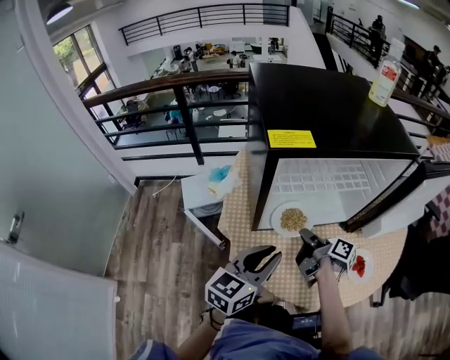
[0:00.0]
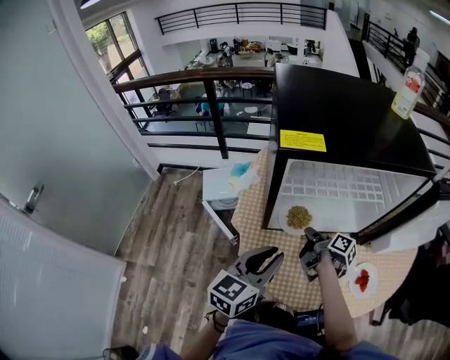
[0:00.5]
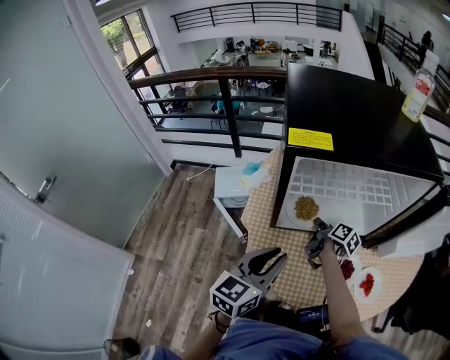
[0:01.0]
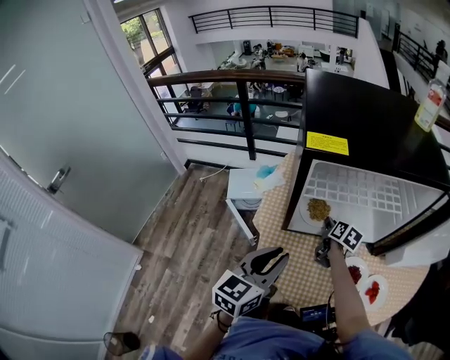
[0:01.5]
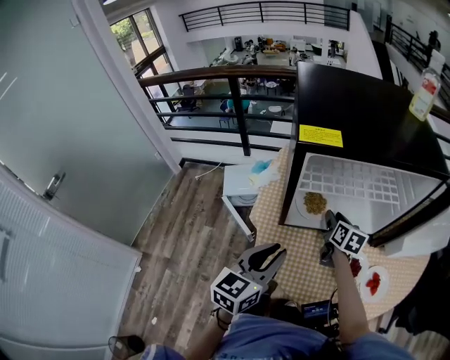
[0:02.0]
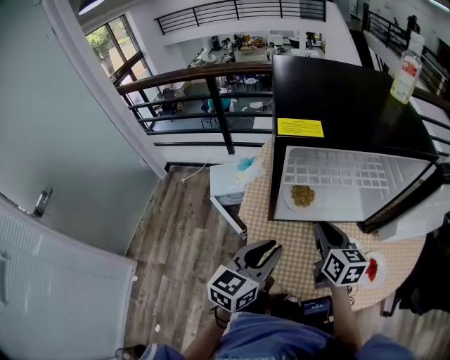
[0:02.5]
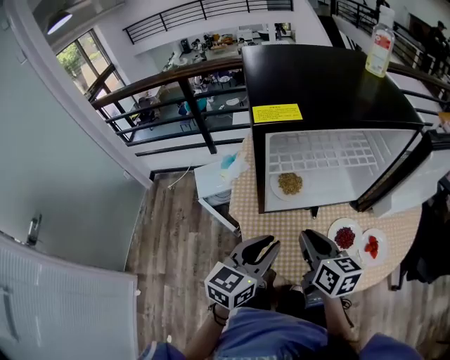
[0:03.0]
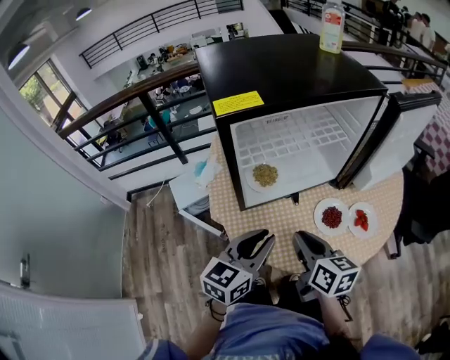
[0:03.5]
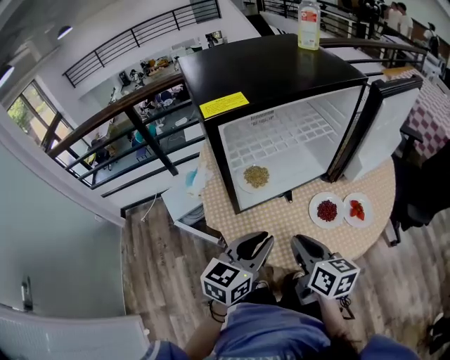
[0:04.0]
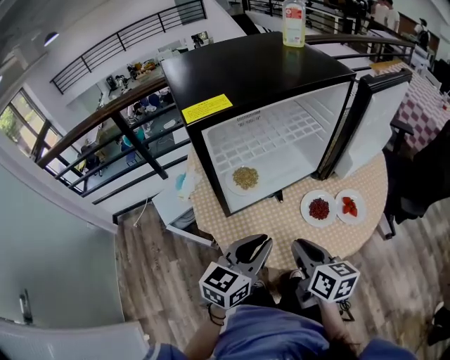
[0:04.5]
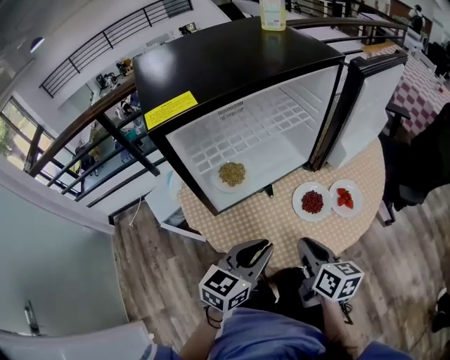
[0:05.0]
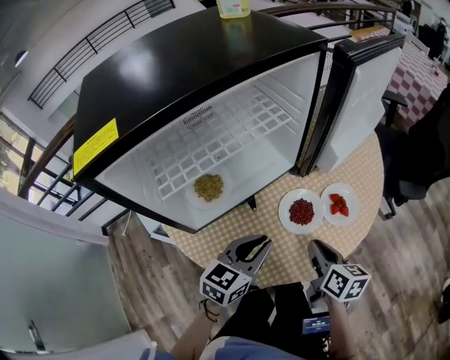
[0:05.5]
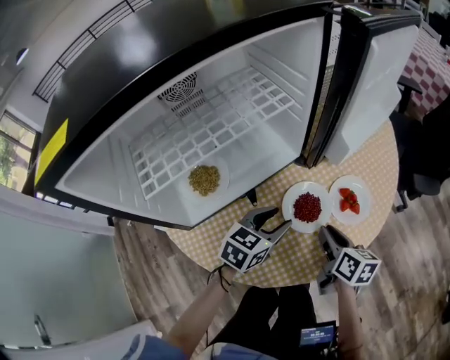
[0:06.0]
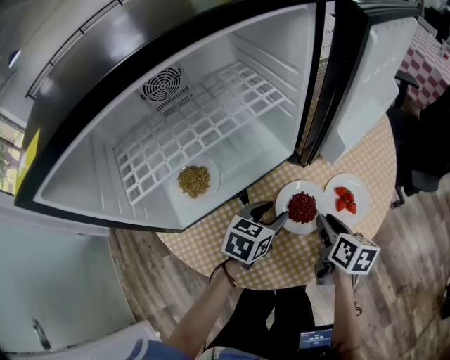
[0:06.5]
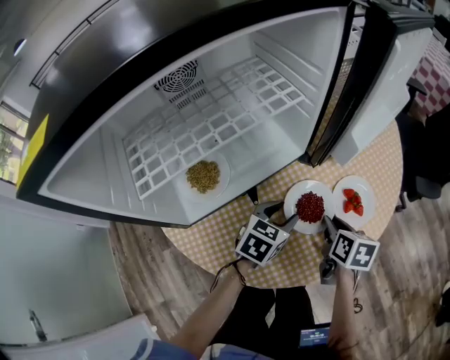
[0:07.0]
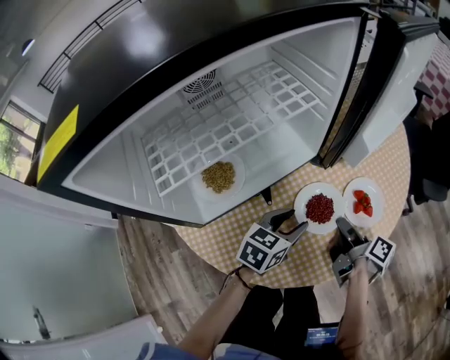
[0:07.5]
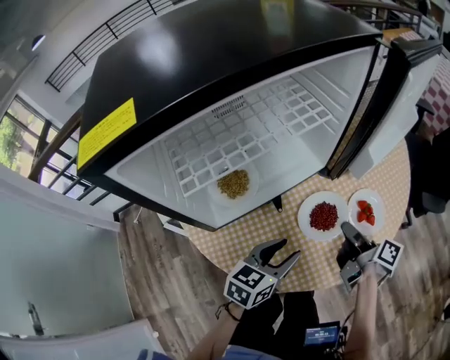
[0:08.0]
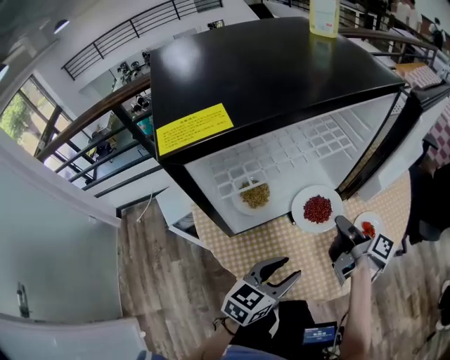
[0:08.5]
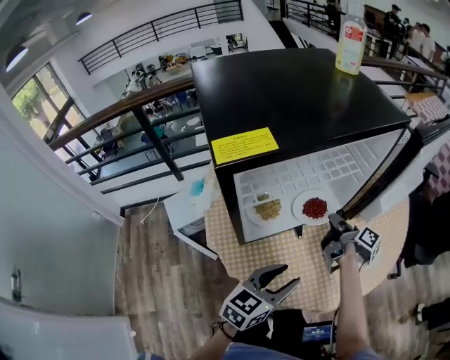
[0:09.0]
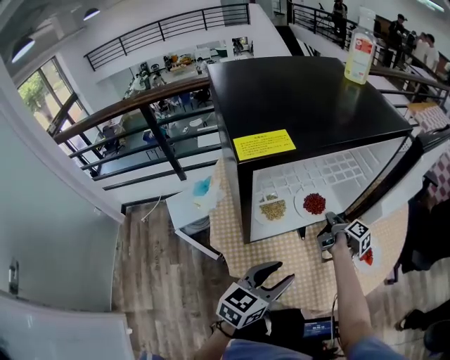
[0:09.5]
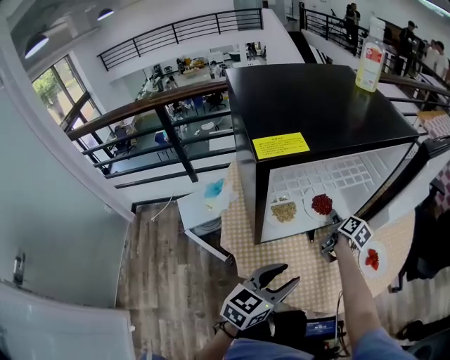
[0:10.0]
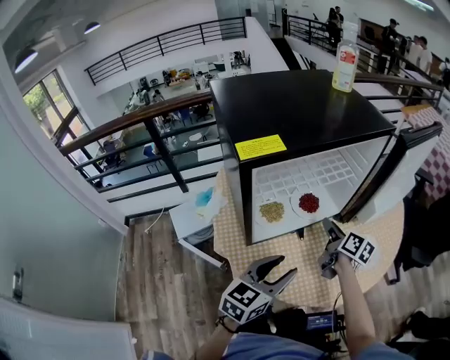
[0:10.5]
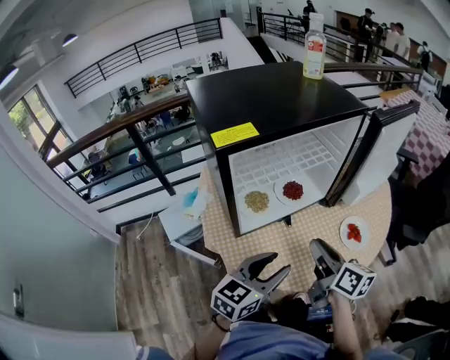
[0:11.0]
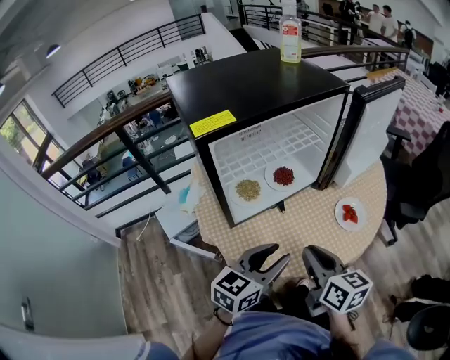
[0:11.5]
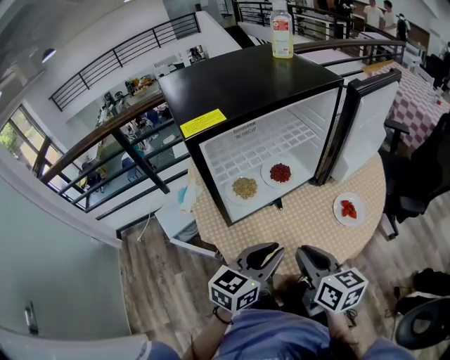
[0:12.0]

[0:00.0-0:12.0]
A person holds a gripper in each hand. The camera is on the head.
0.0 to 2.0 s: The right gripper is displaced forward by approximately 10 cm, rolls counterclockwise, seen from behind, by about 50 degrees, and opens up.
2.0 to 4.0 s: The left gripper ends up approximately 5 cm from where it was, and rotates about 30 degrees. Meanwhile the right gripper goes roughly 25 cm backward, and closes up.
4.0 to 6.0 s: The right gripper shifts some 30 cm to the right, downward and forward, and turns by roughly 30 degrees. Meanwhile the left gripper is displaced downward, forward and to the right by some 30 cm, swivels about 30 degrees, and opens.
6.0 to 8.0 s: The right gripper ends up approximately 5 cm from where it was, and changes its angle by roughly 40 degrees, while the left gripper travels backward by roughly 10 cm.
8.0 to 10.0 s: The right gripper shifts some 20 cm to the left and forward, rotates approximately 30 degrees, and opens. Meanwhile the left gripper travels upward, to the left and backward by some 15 cm.
10.0 to 12.0 s: The left gripper shifts by approximately 5 cm, and closes, while the right gripper travels backward and upward by about 35 cm, and changes its angle by about 30 degrees.

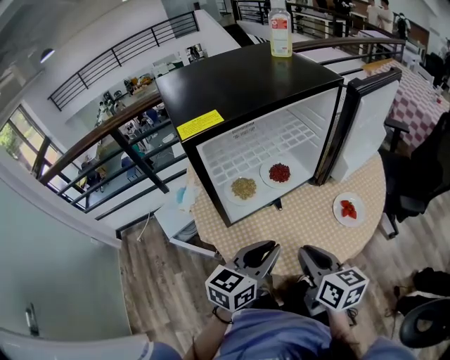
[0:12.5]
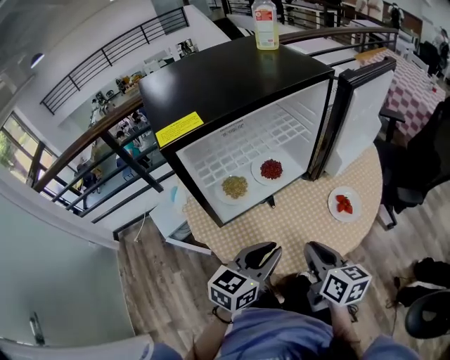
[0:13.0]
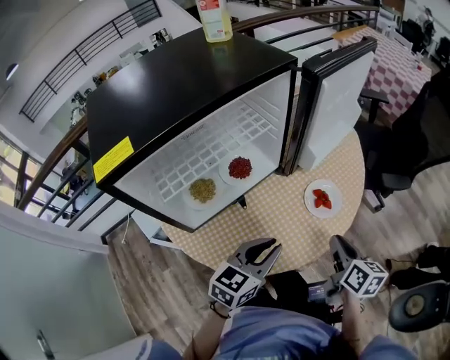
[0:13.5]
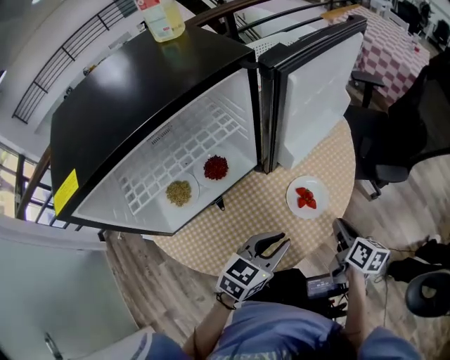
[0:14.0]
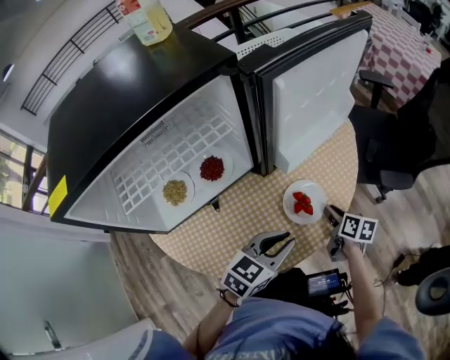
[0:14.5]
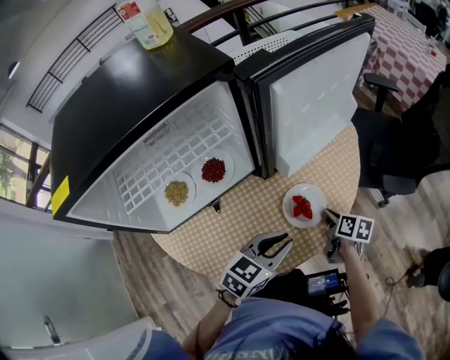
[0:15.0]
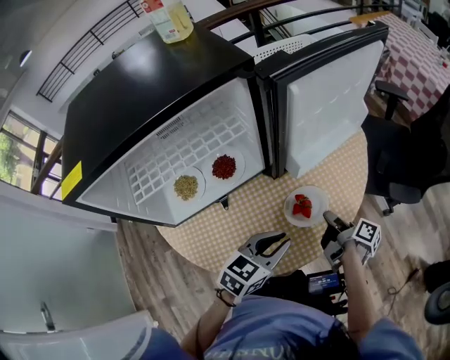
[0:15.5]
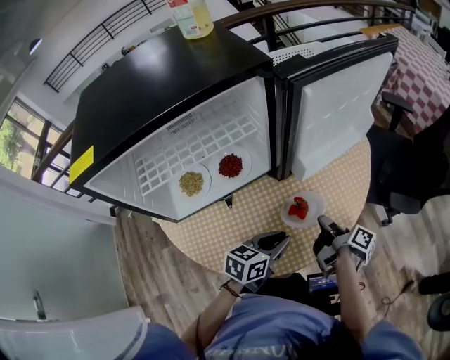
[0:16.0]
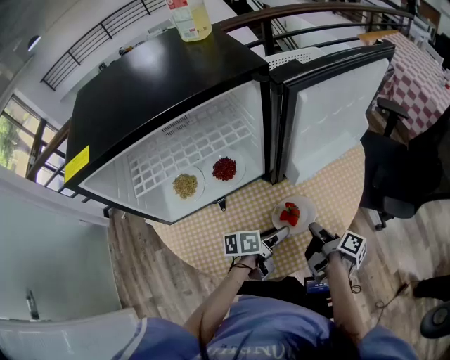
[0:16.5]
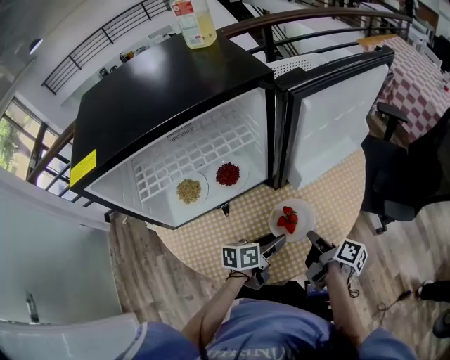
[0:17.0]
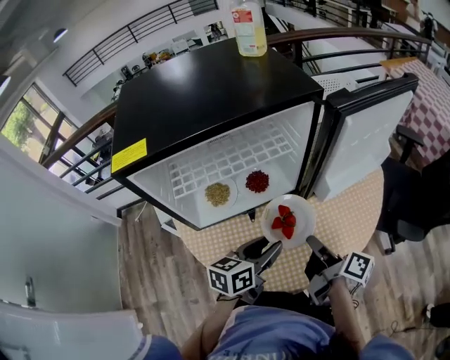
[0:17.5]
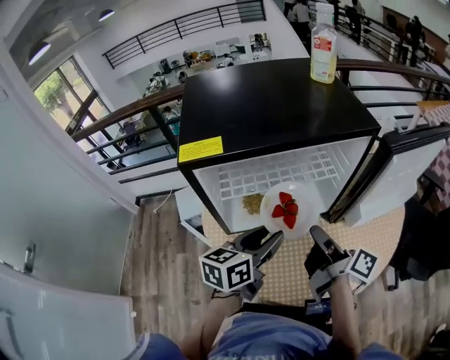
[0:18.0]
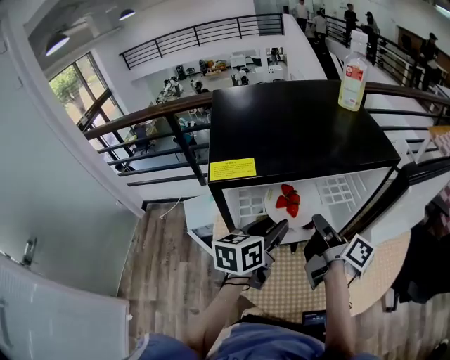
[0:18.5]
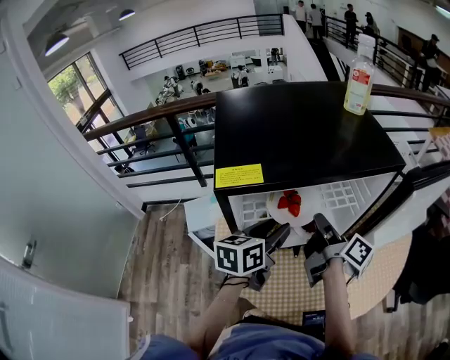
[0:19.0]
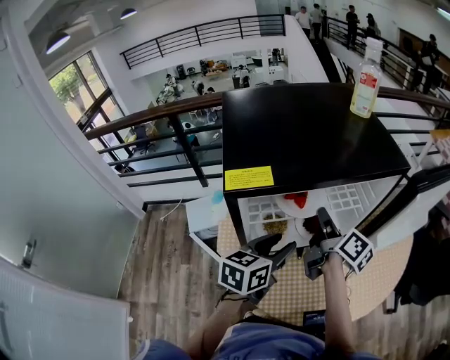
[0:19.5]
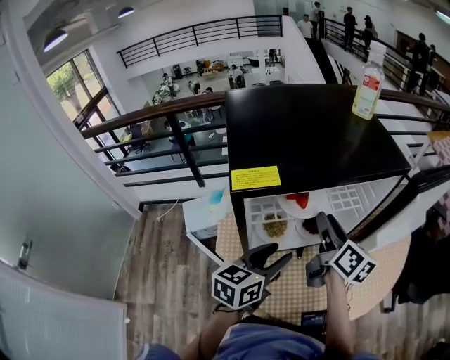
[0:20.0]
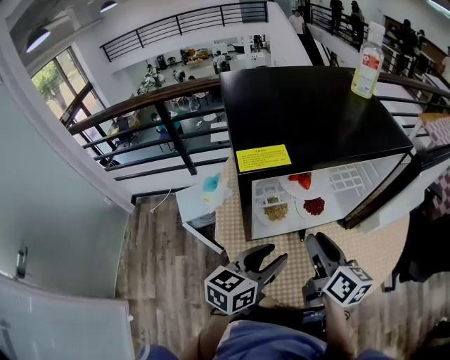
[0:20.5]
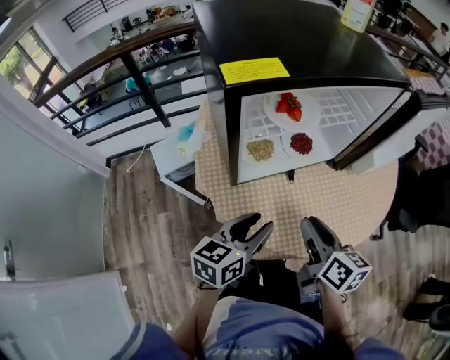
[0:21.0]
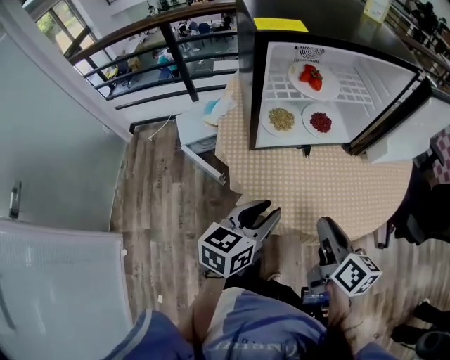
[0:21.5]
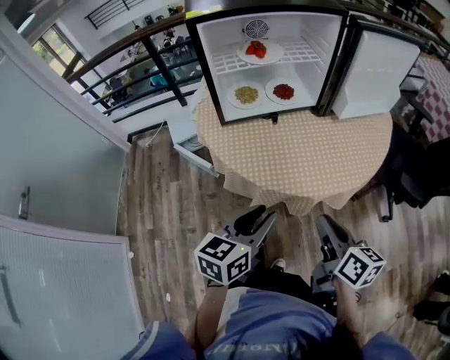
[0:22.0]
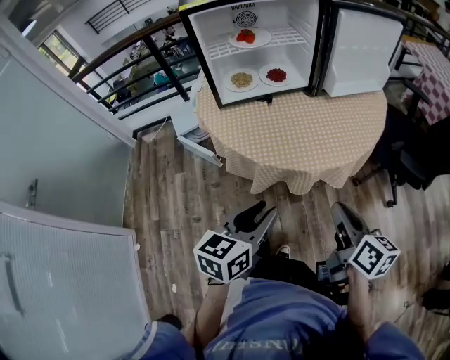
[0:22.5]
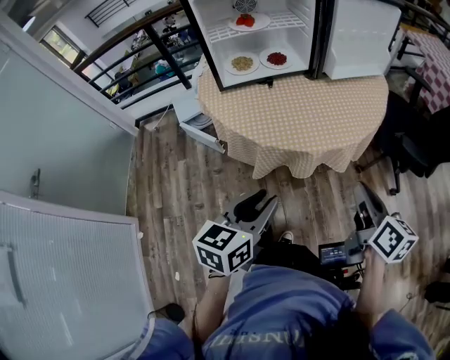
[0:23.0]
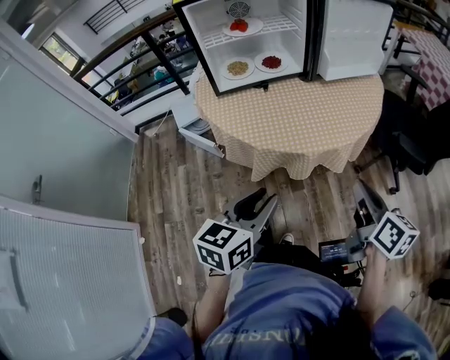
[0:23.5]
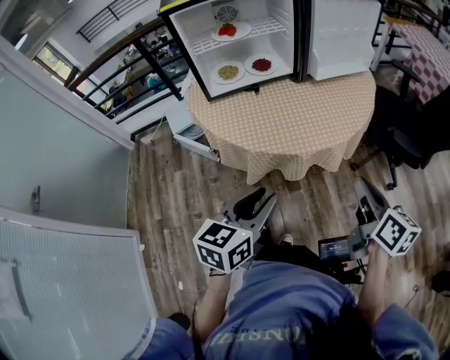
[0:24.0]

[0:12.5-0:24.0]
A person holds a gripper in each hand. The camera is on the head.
12.5 to 14.5 s: The left gripper shifts roughly 25 cm to the right and forward, and changes its angle by about 20 degrees, while the right gripper goes roughly 40 cm to the right, forward and downward, and swivels about 30 degrees.
14.5 to 16.5 s: The right gripper is displaced to the left by roughly 5 cm, and changes its angle by some 40 degrees; the left gripper is displaced downward by roughly 10 cm, rotates around the line of its fingers by roughly 60 degrees, counterclockwise from behind, and opens its fingers.
16.5 to 18.5 s: The grippers both shift to the left and upward by about 40 cm. The left gripper rotates some 40 degrees. The right gripper rotates roughly 30 degrees.
18.5 to 20.0 s: The right gripper rotates about 30 degrees, and opens up. Meanwhile the left gripper goes some 5 cm backward.
20.0 to 22.0 s: The grippers both shift backward by some 35 cm. The right gripper closes up.
22.0 to 24.0 s: The right gripper heads to the right, covering roughly 15 cm. Meanwhile the left gripper travels backward and to the right by some 10 cm.

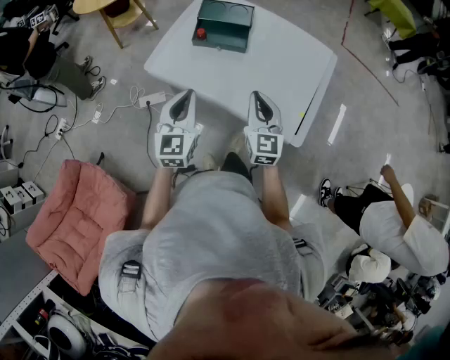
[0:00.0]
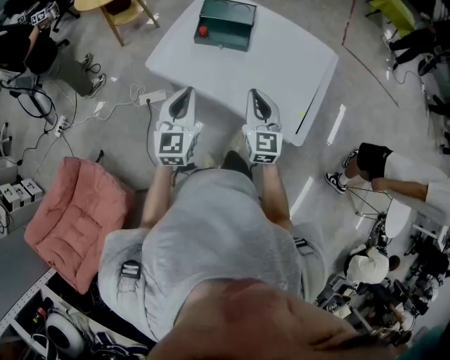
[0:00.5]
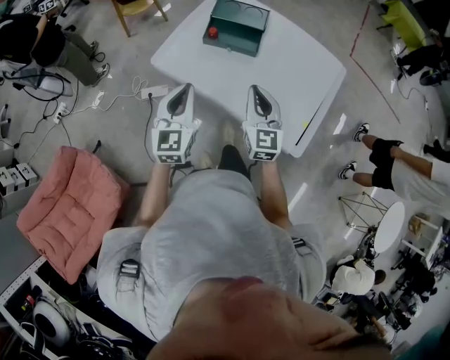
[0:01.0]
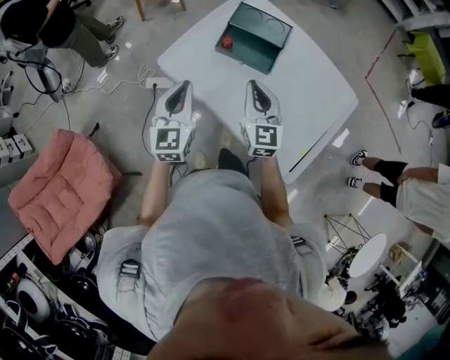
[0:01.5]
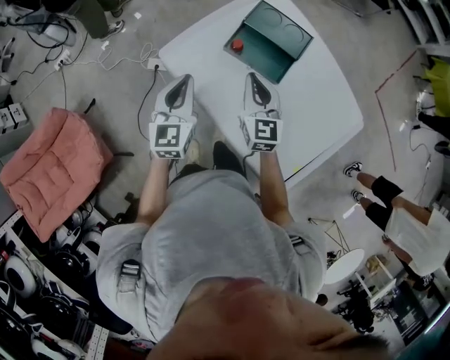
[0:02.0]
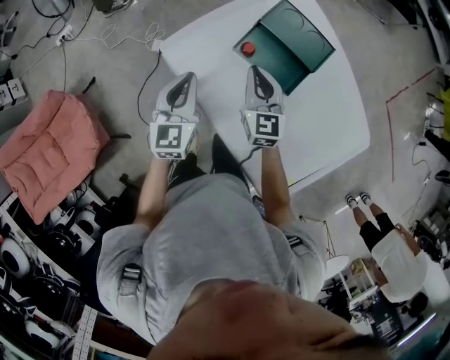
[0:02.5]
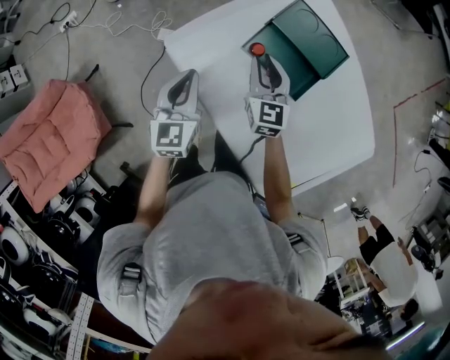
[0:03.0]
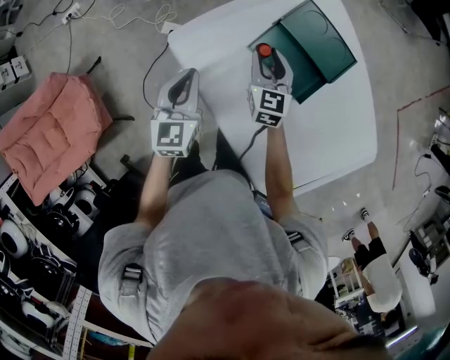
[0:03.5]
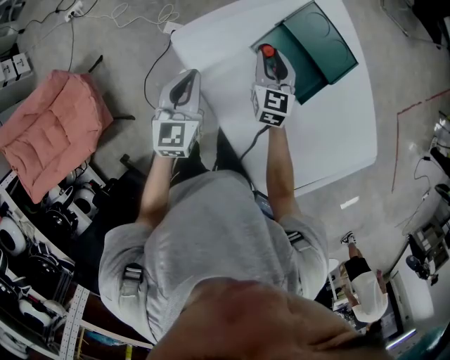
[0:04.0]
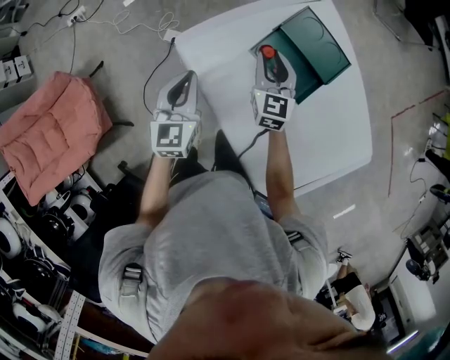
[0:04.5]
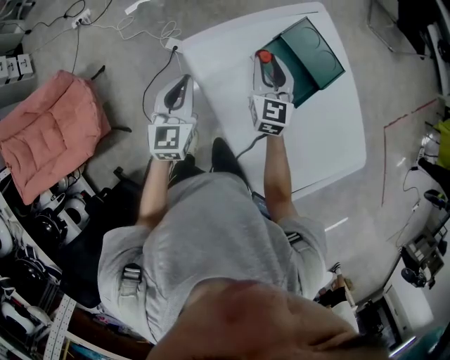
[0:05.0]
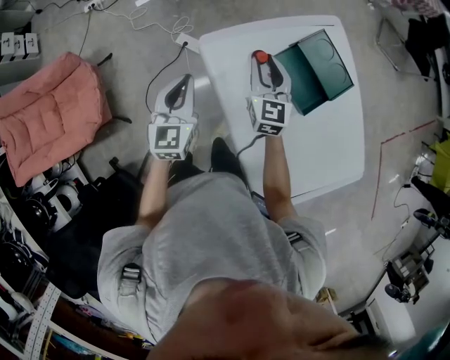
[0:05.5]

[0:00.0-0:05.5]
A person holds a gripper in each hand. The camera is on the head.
0.0 to 2.0 s: The grippers both shift forward by approximately 20 cm. The left gripper turns by approximately 20 degrees. The right gripper swivels approximately 30 degrees.
2.0 to 3.5 s: The left gripper is displaced downward and forward by approximately 10 cm. The right gripper goes some 20 cm downward and forward, and opens.
3.5 to 5.5 s: The left gripper moves to the left, backward and upward, roughly 10 cm, while the right gripper is displaced upward and to the left by some 15 cm.
